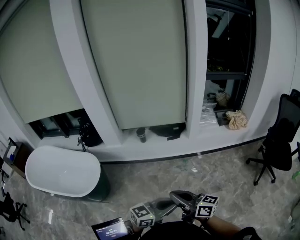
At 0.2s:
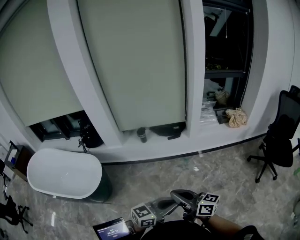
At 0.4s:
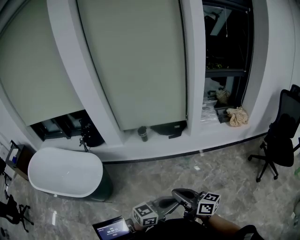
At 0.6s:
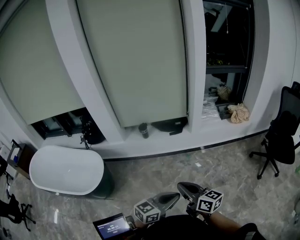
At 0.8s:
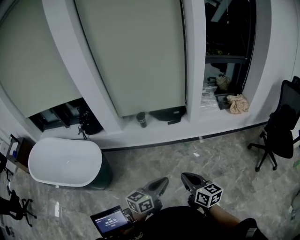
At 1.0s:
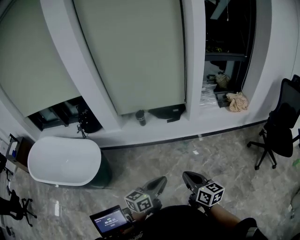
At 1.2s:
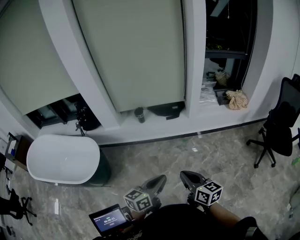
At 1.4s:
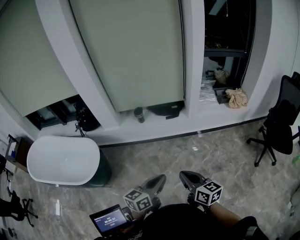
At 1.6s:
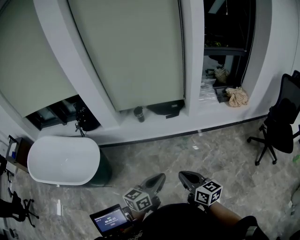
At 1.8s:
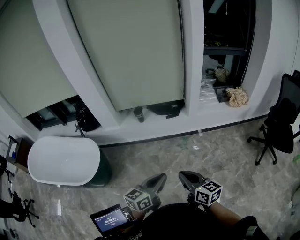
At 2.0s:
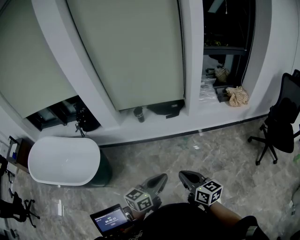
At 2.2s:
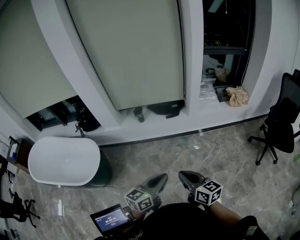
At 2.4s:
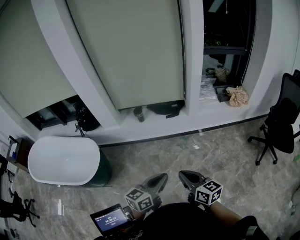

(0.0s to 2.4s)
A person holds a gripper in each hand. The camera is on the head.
0.0s - 1.2s: The right gripper travels downward by some 5 cm, and changes its angle by about 30 degrees. Meanwhile the left gripper moves to the left and forward, about 10 cm, and swivels about 30 degrees.
1.2s - 2.4s: There are only small adjustments of the grippers.

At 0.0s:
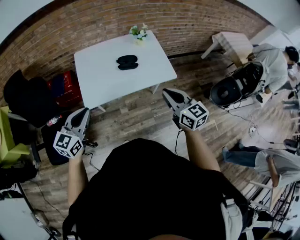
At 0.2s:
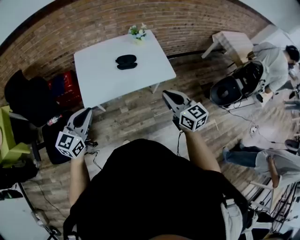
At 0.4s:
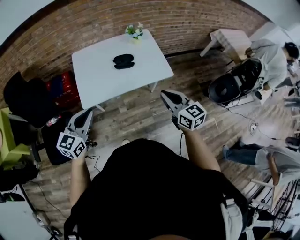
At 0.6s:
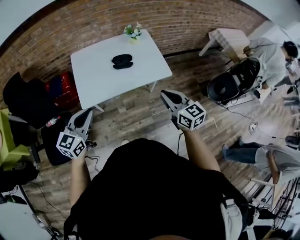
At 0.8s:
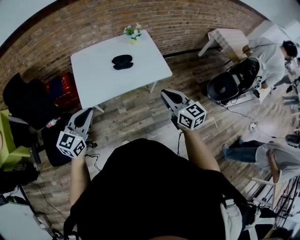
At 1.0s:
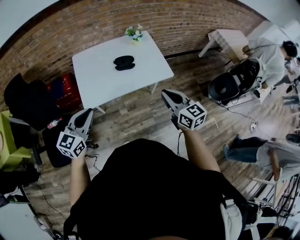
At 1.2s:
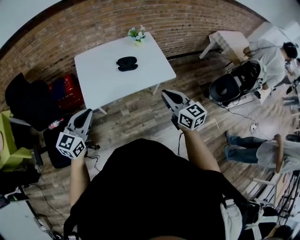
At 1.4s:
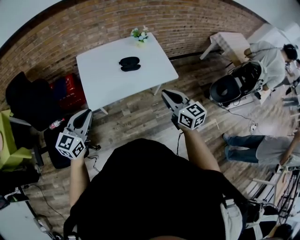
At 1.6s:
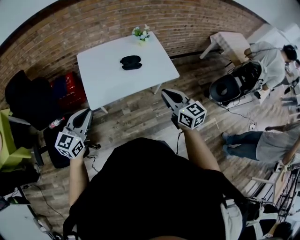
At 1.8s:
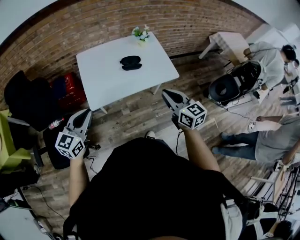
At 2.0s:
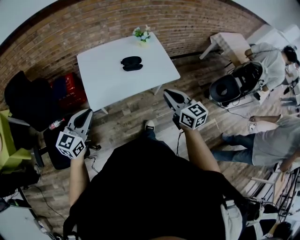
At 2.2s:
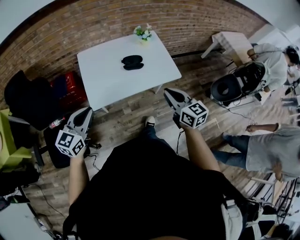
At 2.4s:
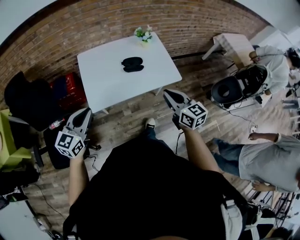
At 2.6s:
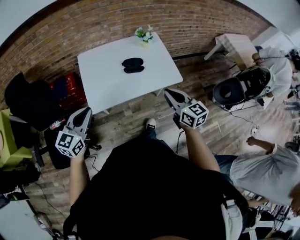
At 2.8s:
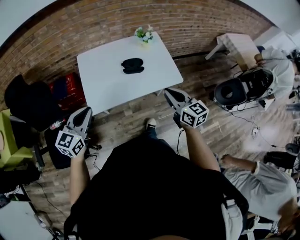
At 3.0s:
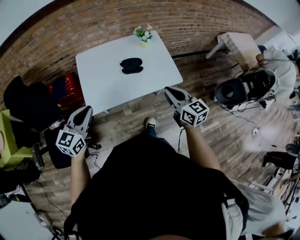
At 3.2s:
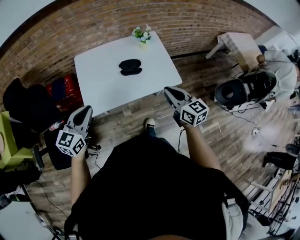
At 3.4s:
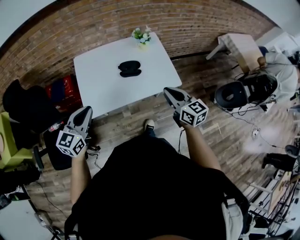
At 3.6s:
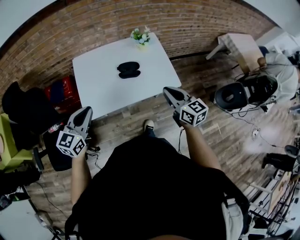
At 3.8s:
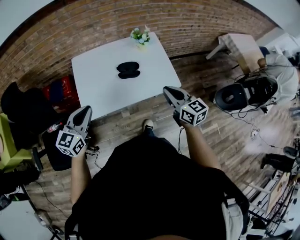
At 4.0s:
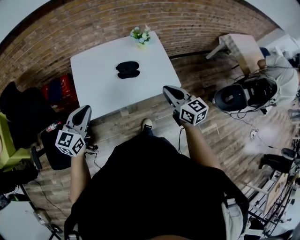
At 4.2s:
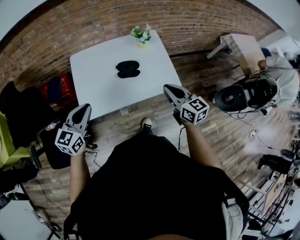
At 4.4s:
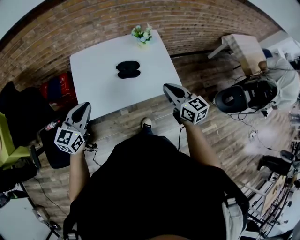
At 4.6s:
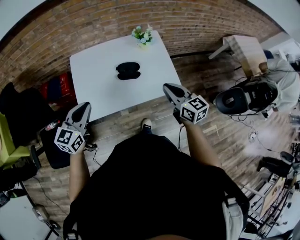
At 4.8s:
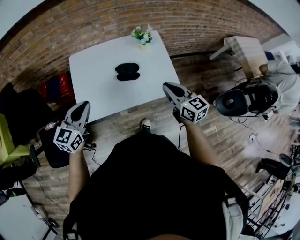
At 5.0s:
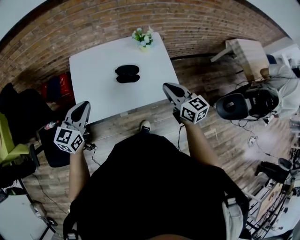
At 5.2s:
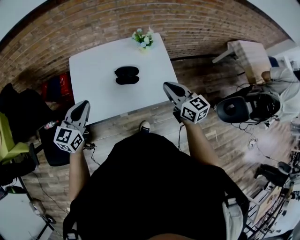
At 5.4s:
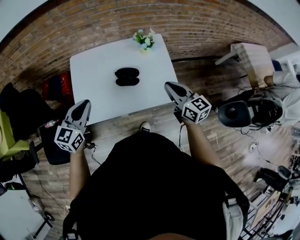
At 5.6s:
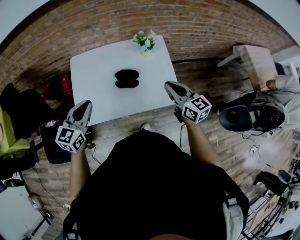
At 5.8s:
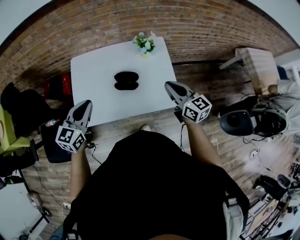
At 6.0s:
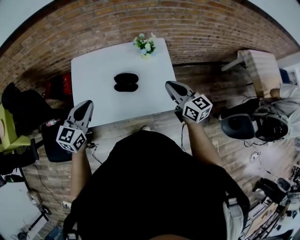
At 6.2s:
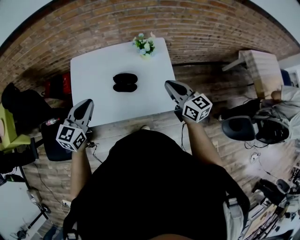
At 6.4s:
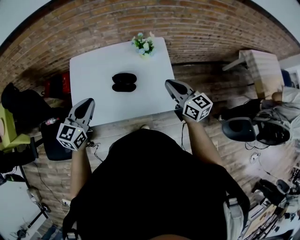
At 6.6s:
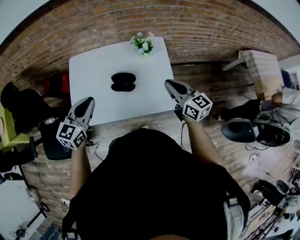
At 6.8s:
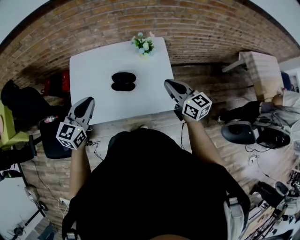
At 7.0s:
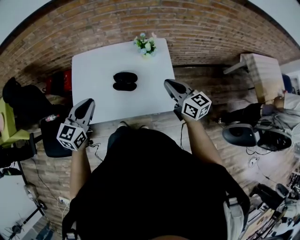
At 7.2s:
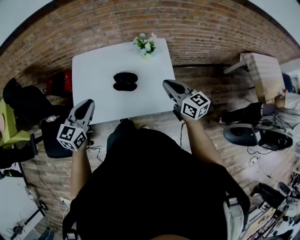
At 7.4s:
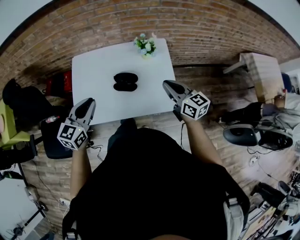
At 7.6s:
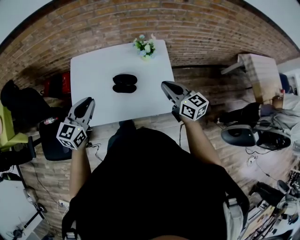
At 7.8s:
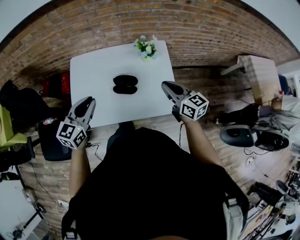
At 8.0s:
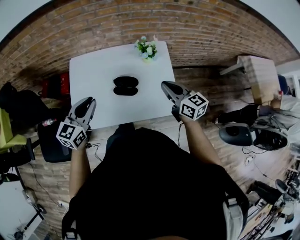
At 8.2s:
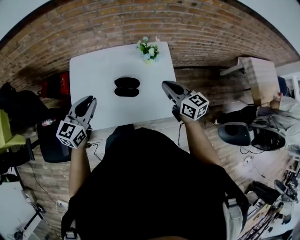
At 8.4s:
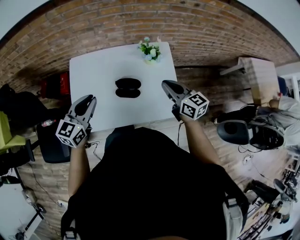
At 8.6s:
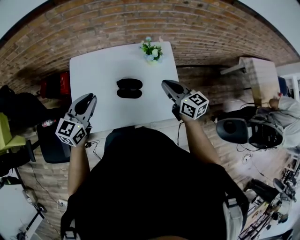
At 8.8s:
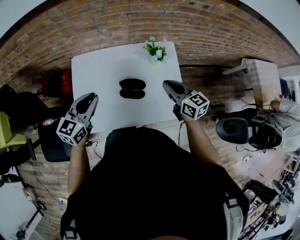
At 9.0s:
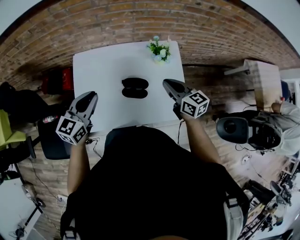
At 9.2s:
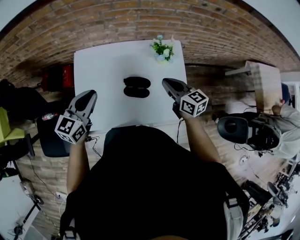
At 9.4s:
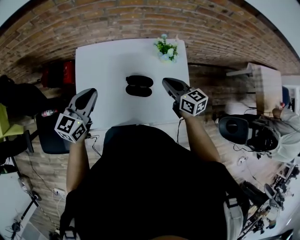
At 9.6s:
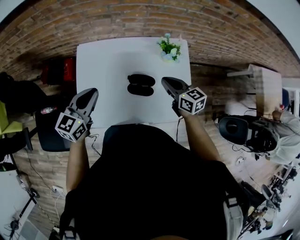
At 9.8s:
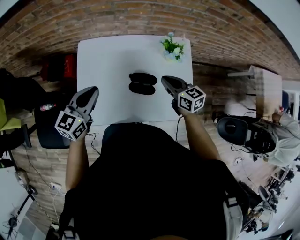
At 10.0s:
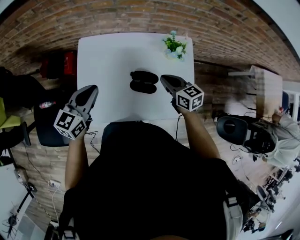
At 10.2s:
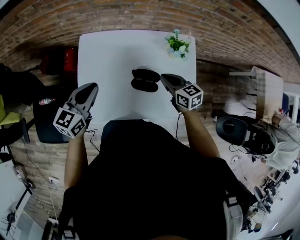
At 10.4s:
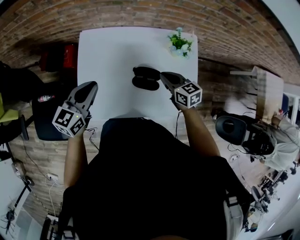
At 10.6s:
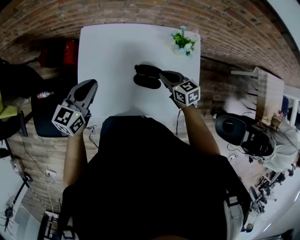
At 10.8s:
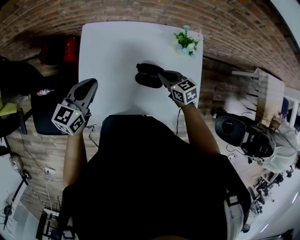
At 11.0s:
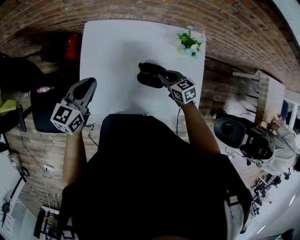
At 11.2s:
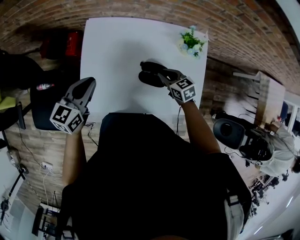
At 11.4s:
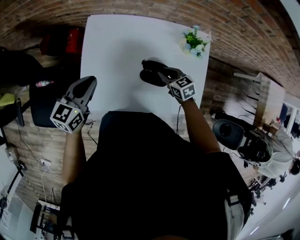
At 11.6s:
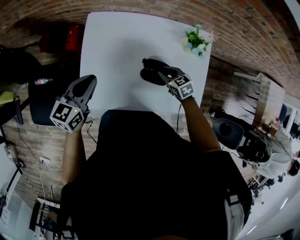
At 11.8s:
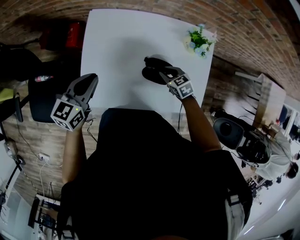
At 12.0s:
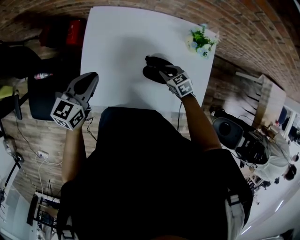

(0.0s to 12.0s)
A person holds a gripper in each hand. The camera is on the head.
0.0s - 1.6s: There are only small adjustments of the grippers.
1.6s - 3.0s: Both grippers move forward, about 10 cm.
3.0s - 4.4s: Both grippers move forward, about 10 cm.
4.4s - 6.0s: The right gripper heads forward and to the right, covering some 15 cm, while the left gripper is displaced to the right and forward by some 15 cm.
6.0s - 7.6s: There are only small adjustments of the grippers.
7.6s - 9.0s: The two grippers go roughly 10 cm forward and to the left.
9.0s - 10.4s: The right gripper goes some 15 cm downward and to the left. Meanwhile the left gripper travels to the left and downward by about 10 cm.
10.4s - 12.0s: The left gripper is displaced downward and to the left by approximately 10 cm. Meanwhile the right gripper heads downward, covering roughly 15 cm, changes its angle by some 30 degrees, and opens up.

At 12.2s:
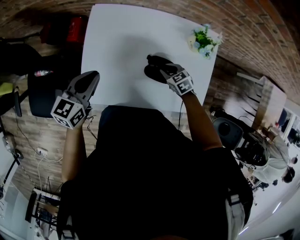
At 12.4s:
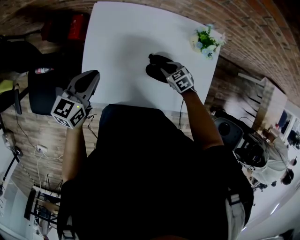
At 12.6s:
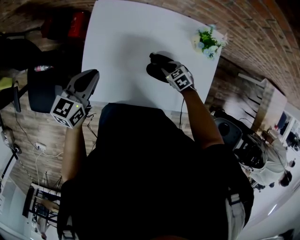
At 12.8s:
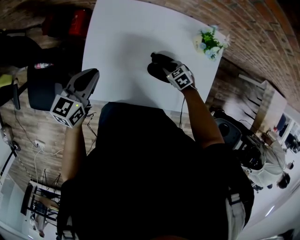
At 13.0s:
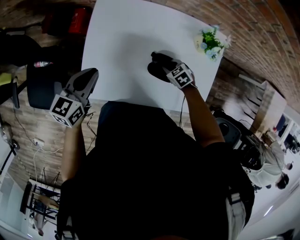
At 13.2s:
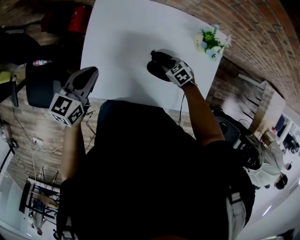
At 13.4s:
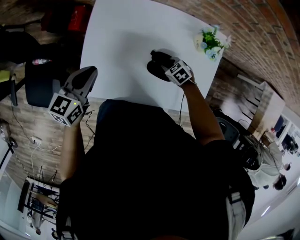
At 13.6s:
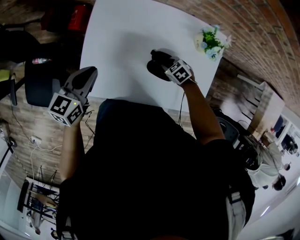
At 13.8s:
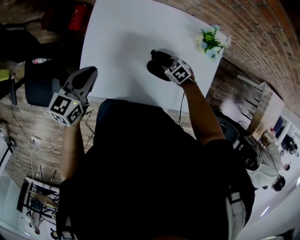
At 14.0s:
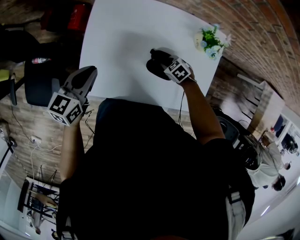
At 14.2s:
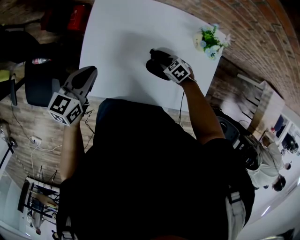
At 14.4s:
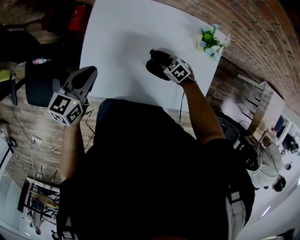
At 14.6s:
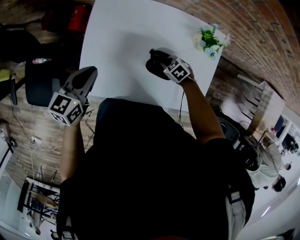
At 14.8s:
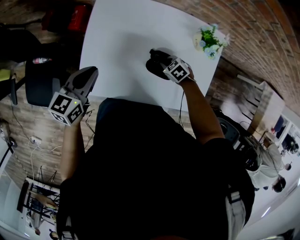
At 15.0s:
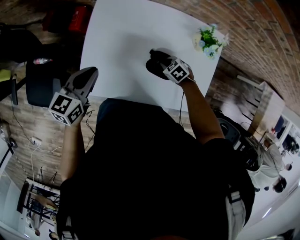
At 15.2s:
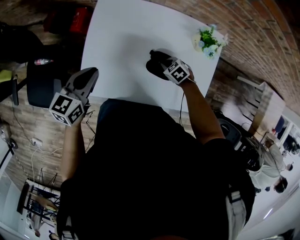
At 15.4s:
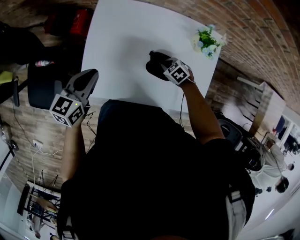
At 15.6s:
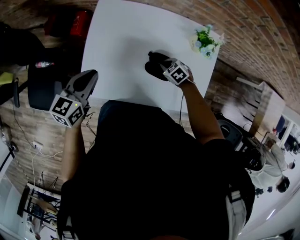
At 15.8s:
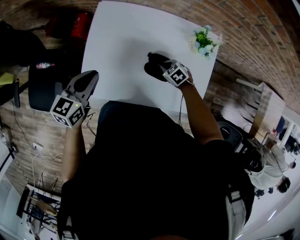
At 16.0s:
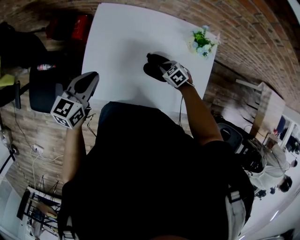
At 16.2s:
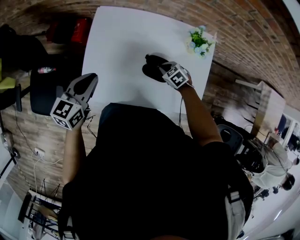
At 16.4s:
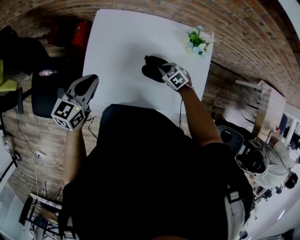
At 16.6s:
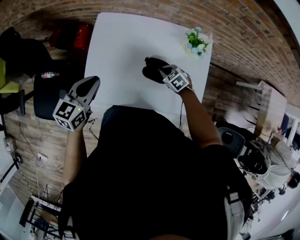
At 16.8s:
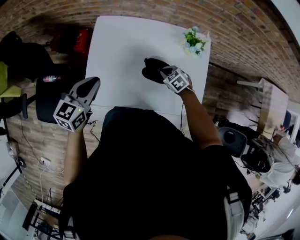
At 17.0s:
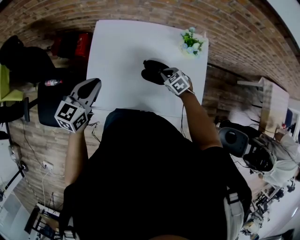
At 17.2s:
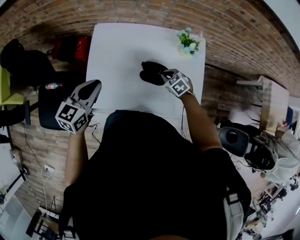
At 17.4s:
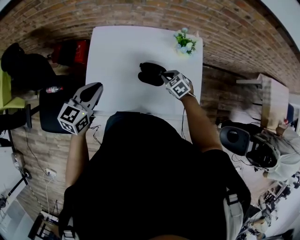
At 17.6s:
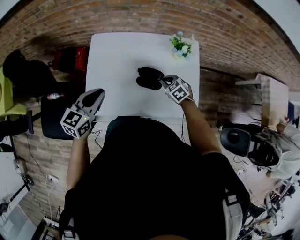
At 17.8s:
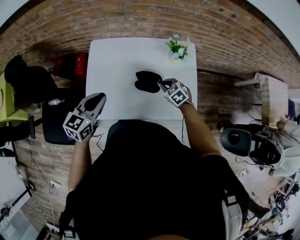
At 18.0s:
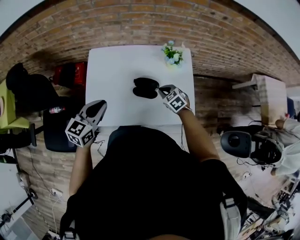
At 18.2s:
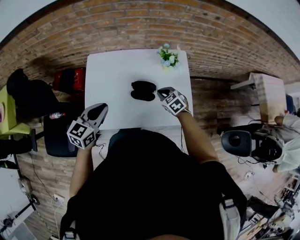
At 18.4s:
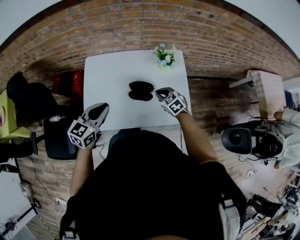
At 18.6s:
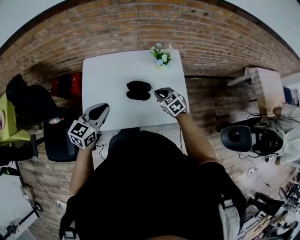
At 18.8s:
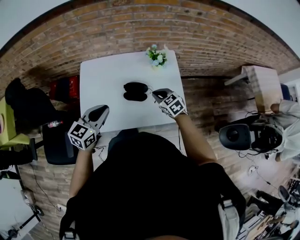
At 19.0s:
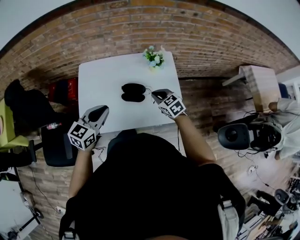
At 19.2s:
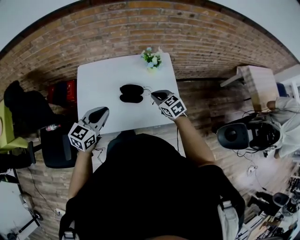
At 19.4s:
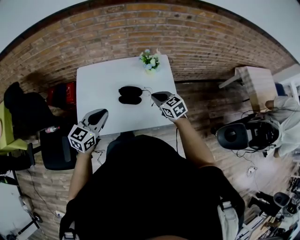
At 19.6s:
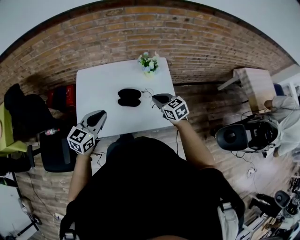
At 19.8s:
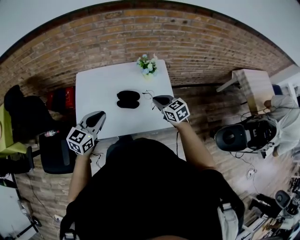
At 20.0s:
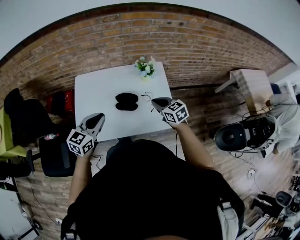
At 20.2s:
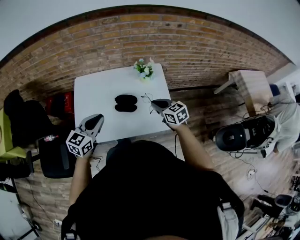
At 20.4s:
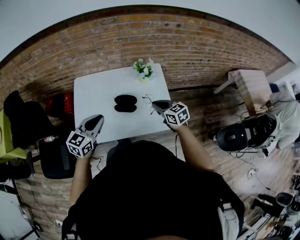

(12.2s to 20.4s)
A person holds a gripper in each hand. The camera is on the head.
12.2s - 13.8s: The right gripper heads downward, covering roughly 5 cm.
13.8s - 15.4s: The grippers make only small movements.
15.4s - 17.2s: The right gripper goes some 10 cm upward. Meanwhile the left gripper travels upward and backward by roughly 10 cm.
17.2s - 18.8s: The right gripper is displaced upward, backward and to the right by about 15 cm, and turns by some 20 degrees. Meanwhile the left gripper shifts about 15 cm to the right and backward.
18.8s - 20.4s: The right gripper travels upward and to the right by about 10 cm.

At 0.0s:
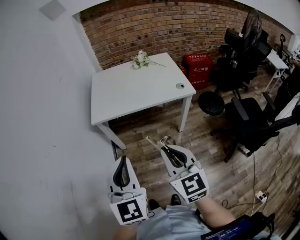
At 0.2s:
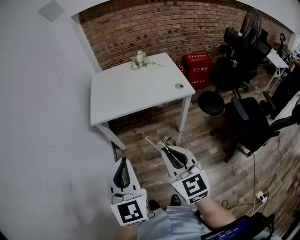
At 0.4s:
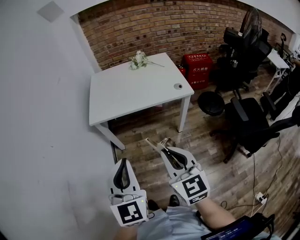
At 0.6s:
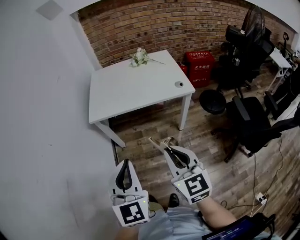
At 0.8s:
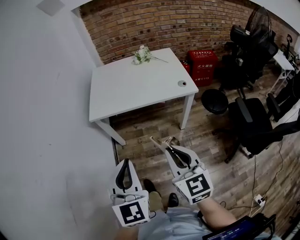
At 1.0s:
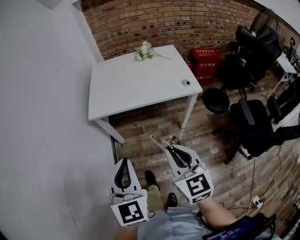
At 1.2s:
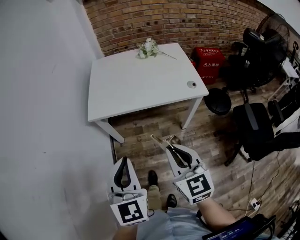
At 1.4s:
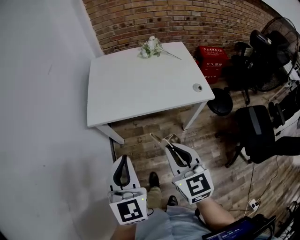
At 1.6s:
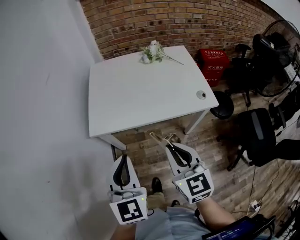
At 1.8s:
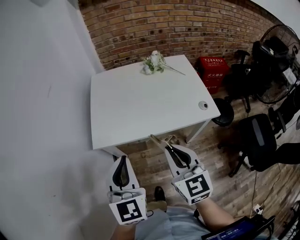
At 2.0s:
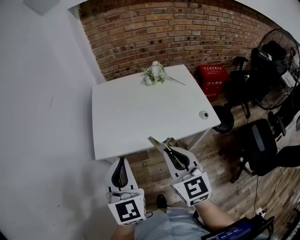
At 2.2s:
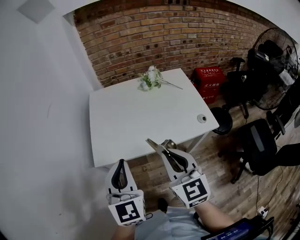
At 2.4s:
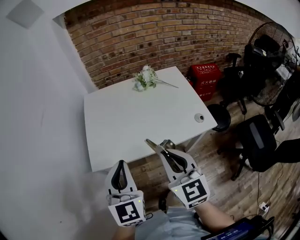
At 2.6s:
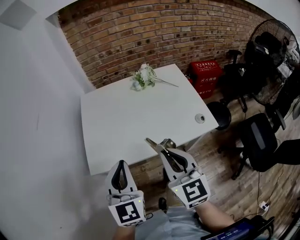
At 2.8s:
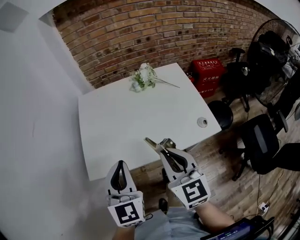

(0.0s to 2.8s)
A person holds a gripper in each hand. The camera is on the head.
0.0s - 1.4s: The right gripper shifts about 15 cm forward; the left gripper is displaced forward and downward by roughly 15 cm.
1.4s - 2.8s: The grippers both shift forward by some 25 cm.
